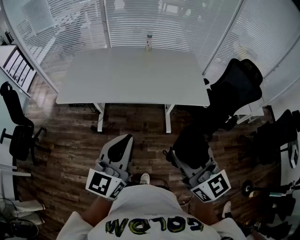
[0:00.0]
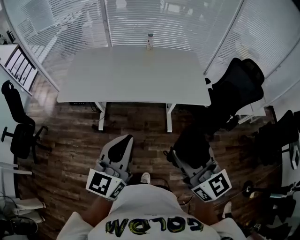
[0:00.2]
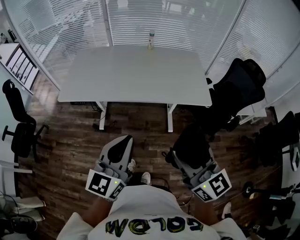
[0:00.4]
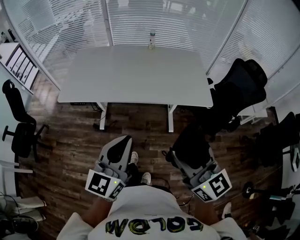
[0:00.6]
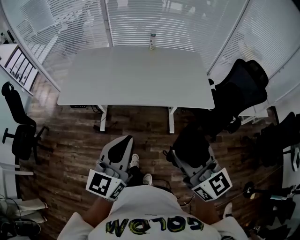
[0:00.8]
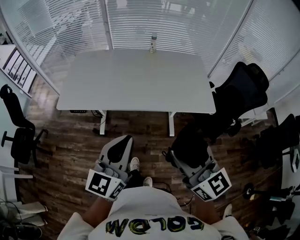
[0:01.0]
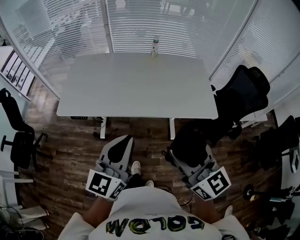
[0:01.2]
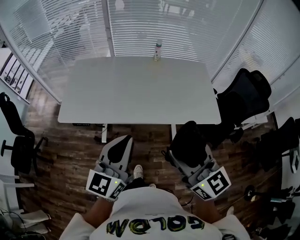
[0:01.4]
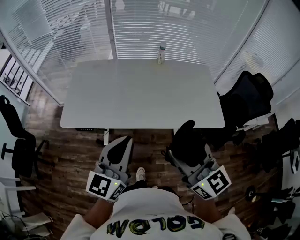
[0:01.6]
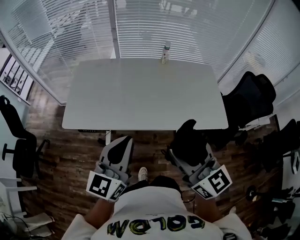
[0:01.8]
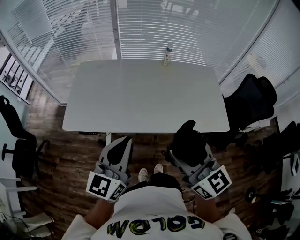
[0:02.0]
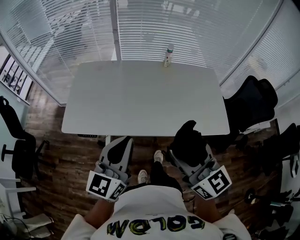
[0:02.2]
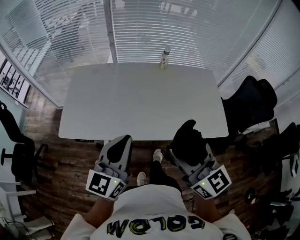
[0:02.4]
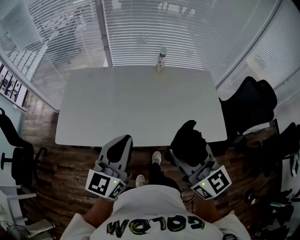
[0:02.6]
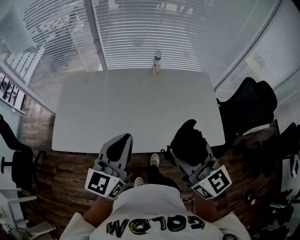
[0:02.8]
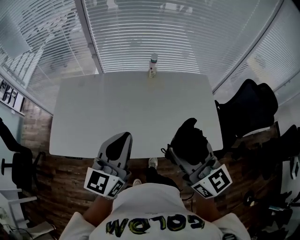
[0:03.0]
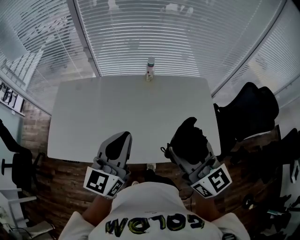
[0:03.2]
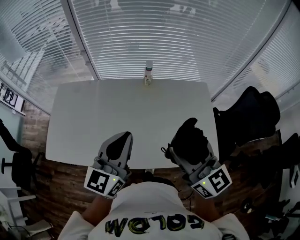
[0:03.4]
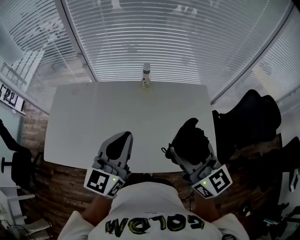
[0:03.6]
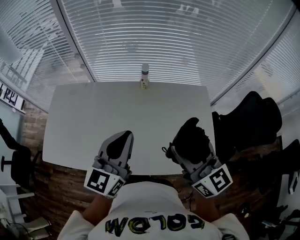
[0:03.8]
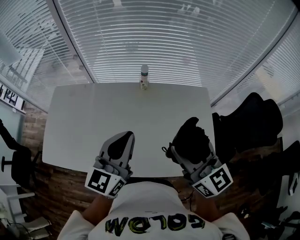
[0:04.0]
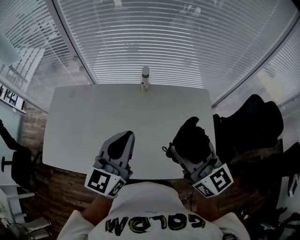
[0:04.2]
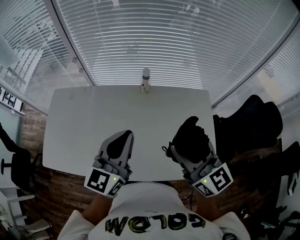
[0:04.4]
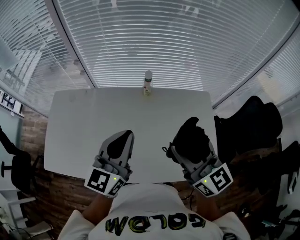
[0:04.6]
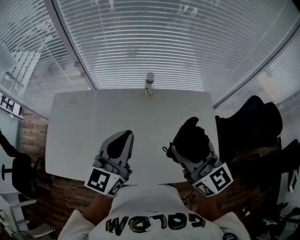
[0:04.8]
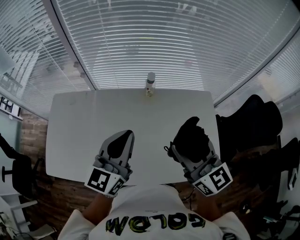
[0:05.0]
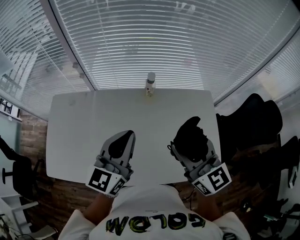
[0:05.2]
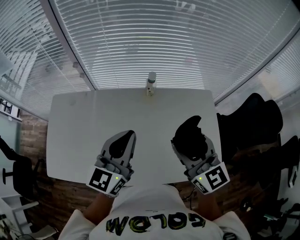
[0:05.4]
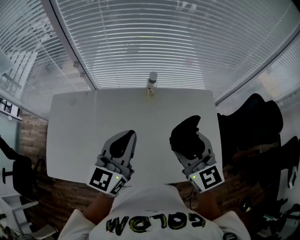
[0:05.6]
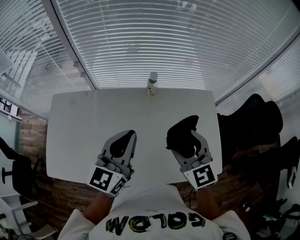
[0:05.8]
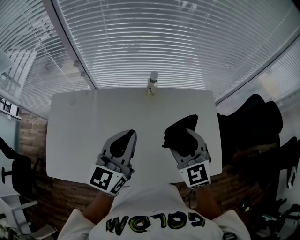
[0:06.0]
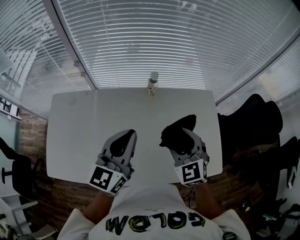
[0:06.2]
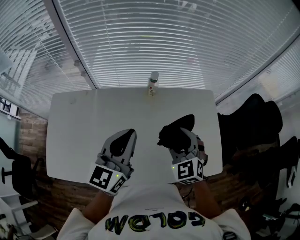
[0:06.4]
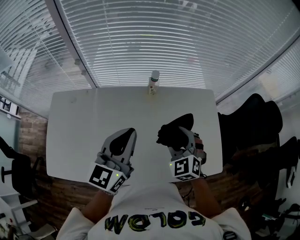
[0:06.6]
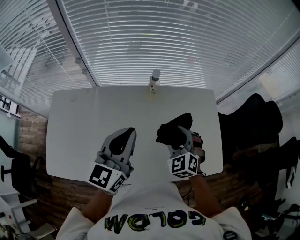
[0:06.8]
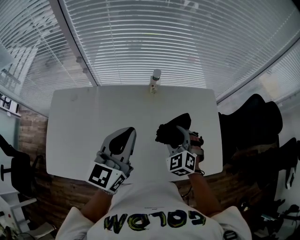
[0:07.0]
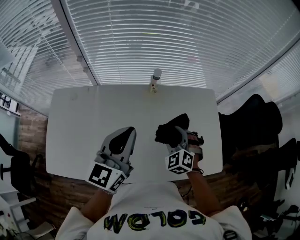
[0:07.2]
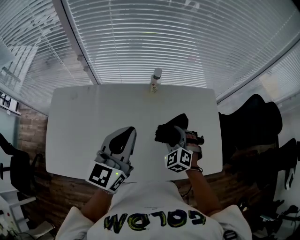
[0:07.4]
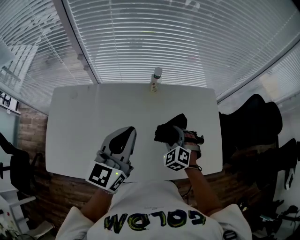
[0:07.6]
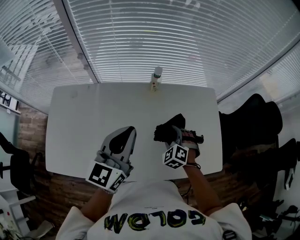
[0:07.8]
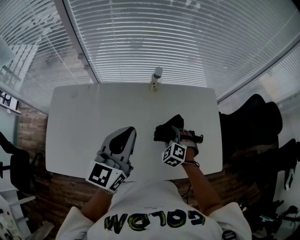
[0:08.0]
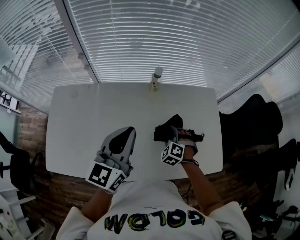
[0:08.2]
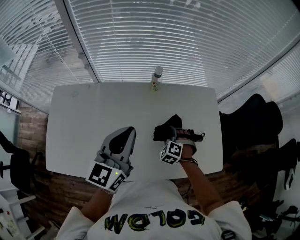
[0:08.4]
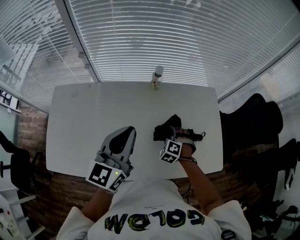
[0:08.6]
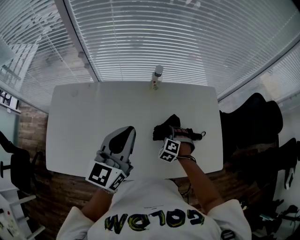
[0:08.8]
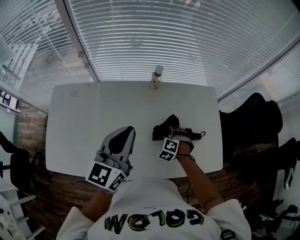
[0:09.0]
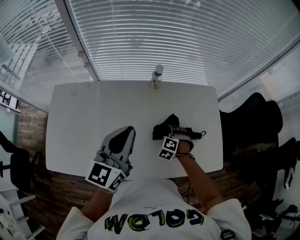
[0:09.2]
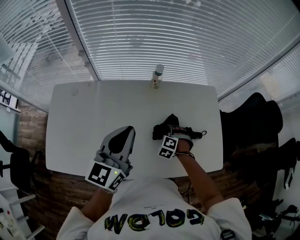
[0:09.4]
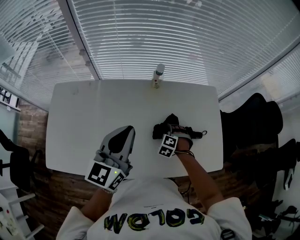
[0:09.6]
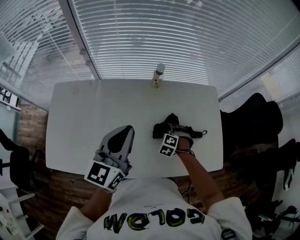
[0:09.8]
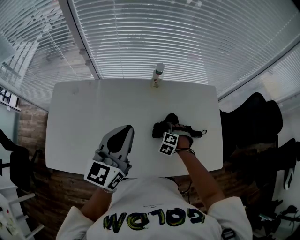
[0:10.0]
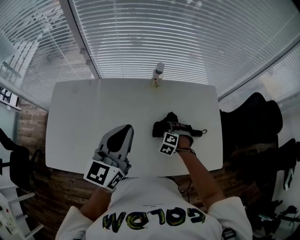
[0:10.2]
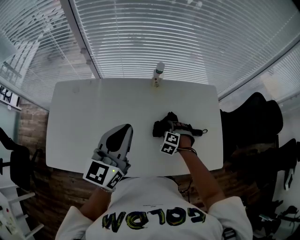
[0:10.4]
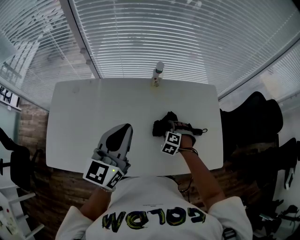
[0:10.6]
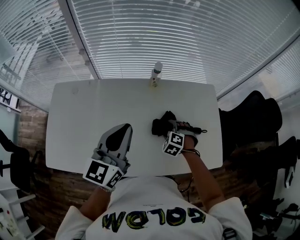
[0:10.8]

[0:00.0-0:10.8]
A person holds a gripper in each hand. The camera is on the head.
0:00.0 to 0:01.6: The two grippers go some 25 cm forward and to the left.
0:01.6 to 0:03.0: The left gripper is displaced forward by about 20 cm. Meanwhile the right gripper moves forward and to the right, roughly 20 cm.
0:03.0 to 0:04.6: Both grippers travel together forward and to the right, some 20 cm.
0:04.6 to 0:06.2: The right gripper heads downward and forward, covering about 15 cm, and swivels some 40 degrees. Meanwhile the left gripper shifts by about 5 cm.
0:06.2 to 0:07.8: The right gripper heads downward, covering some 15 cm, and turns by about 30 degrees.
0:07.8 to 0:09.2: The right gripper shifts roughly 10 cm downward.
0:09.2 to 0:10.8: The grippers make only small movements.

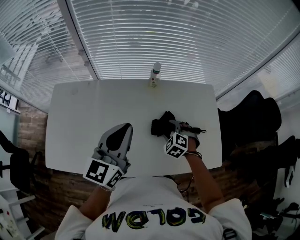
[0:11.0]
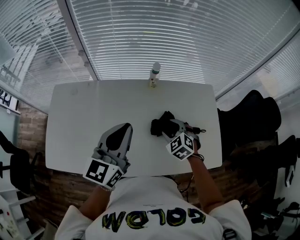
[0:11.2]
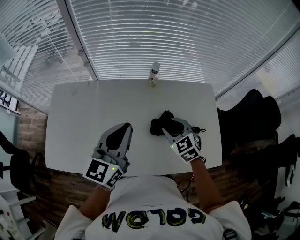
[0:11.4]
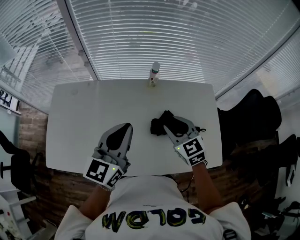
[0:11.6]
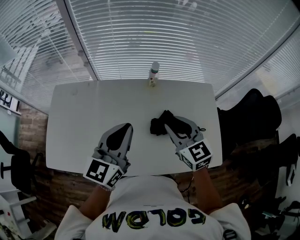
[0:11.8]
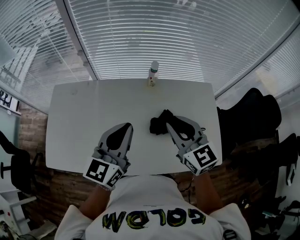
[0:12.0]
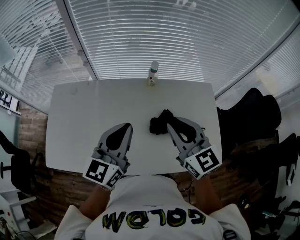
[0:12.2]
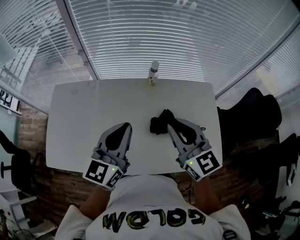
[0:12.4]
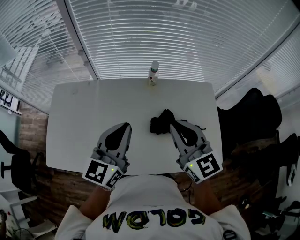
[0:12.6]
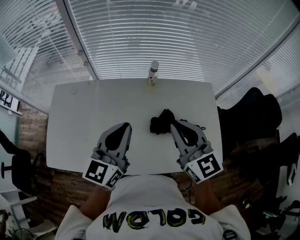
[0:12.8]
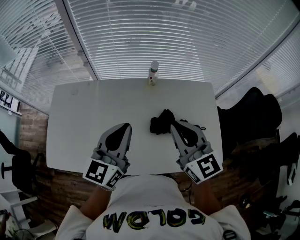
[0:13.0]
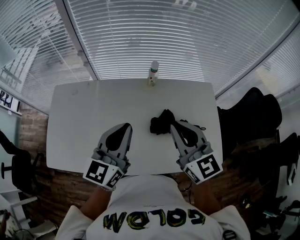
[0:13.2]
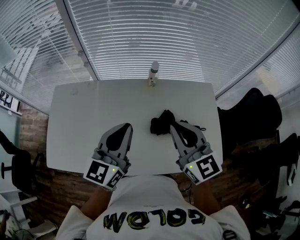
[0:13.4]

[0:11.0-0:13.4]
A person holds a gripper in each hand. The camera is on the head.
0:11.0 to 0:12.2: The right gripper moves upward, about 25 cm, points its fingers some 50 degrees further upward, and closes up.
0:12.2 to 0:13.4: There are only small adjustments of the grippers.

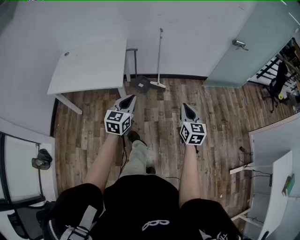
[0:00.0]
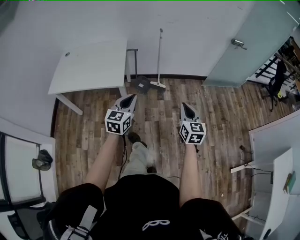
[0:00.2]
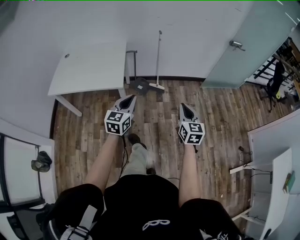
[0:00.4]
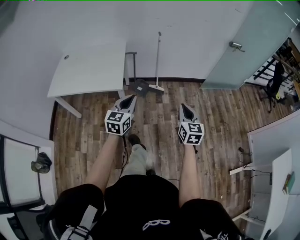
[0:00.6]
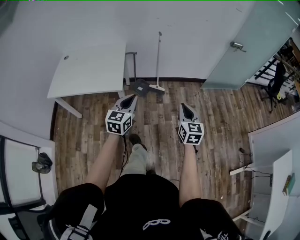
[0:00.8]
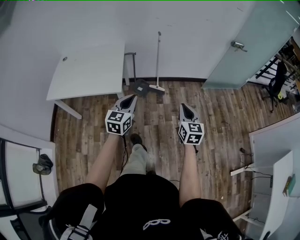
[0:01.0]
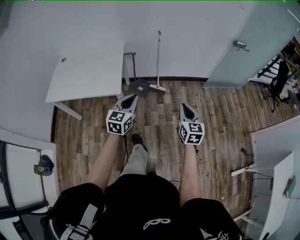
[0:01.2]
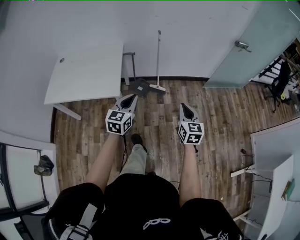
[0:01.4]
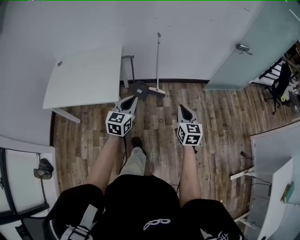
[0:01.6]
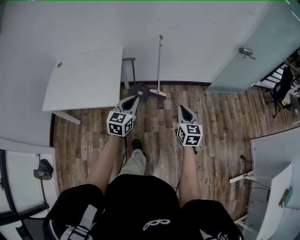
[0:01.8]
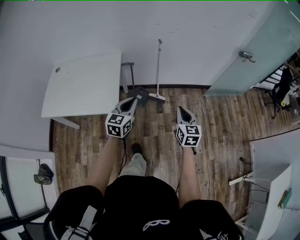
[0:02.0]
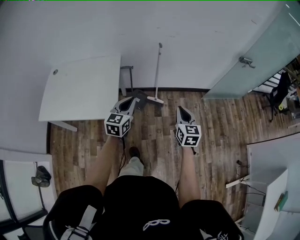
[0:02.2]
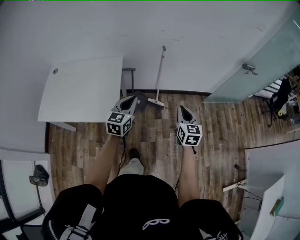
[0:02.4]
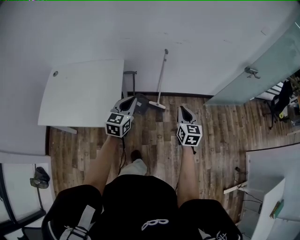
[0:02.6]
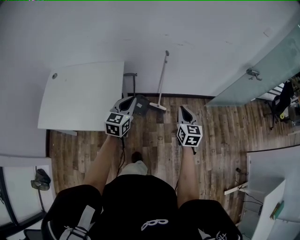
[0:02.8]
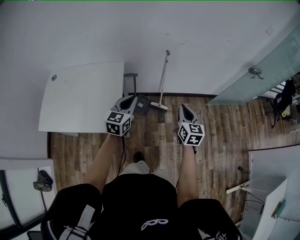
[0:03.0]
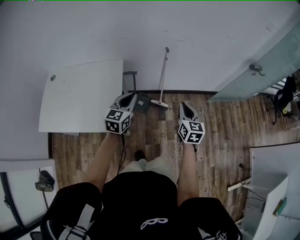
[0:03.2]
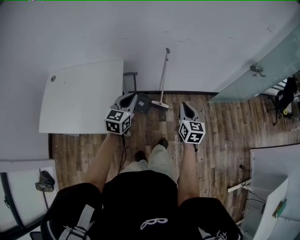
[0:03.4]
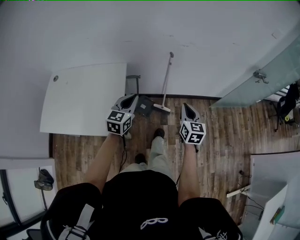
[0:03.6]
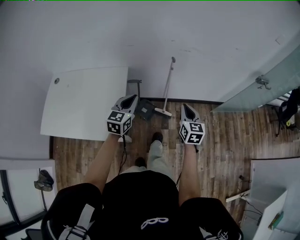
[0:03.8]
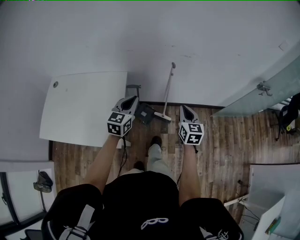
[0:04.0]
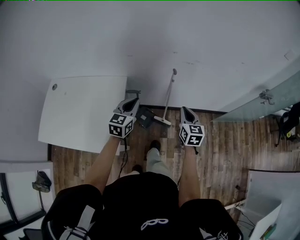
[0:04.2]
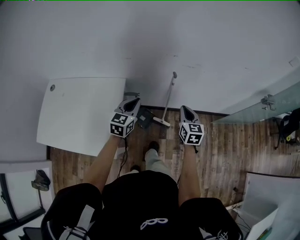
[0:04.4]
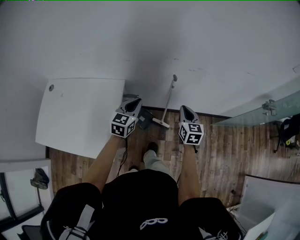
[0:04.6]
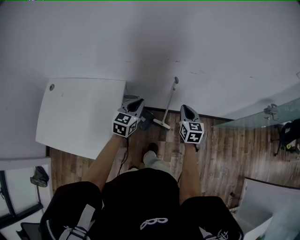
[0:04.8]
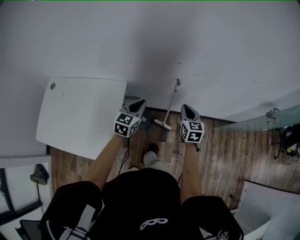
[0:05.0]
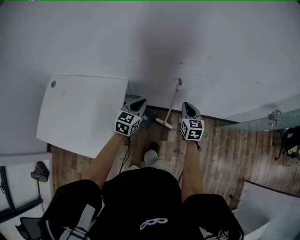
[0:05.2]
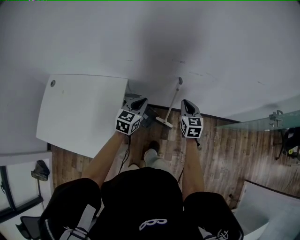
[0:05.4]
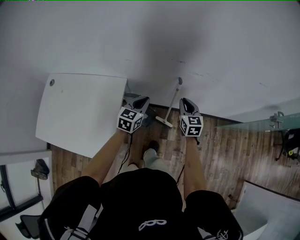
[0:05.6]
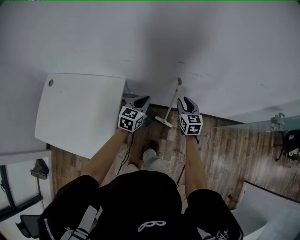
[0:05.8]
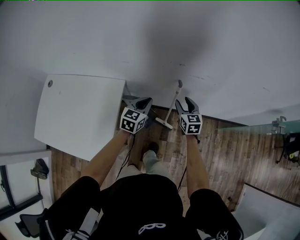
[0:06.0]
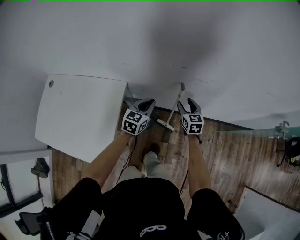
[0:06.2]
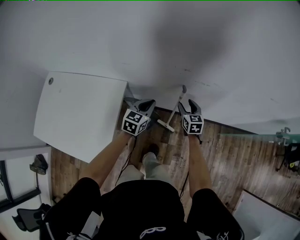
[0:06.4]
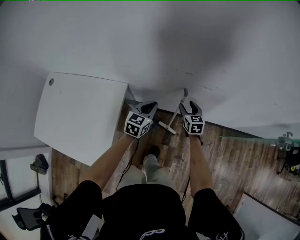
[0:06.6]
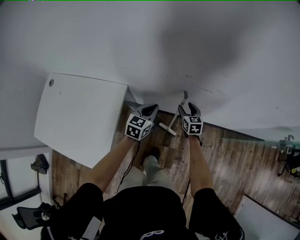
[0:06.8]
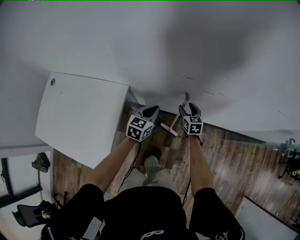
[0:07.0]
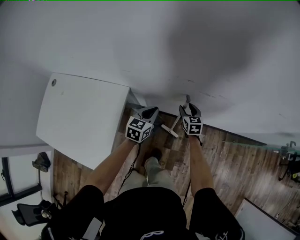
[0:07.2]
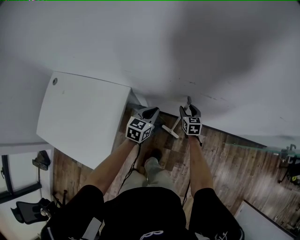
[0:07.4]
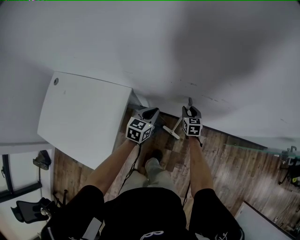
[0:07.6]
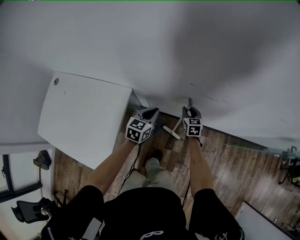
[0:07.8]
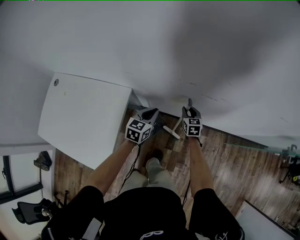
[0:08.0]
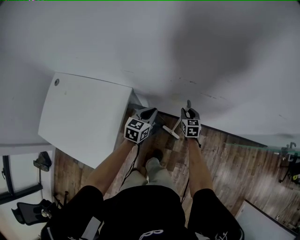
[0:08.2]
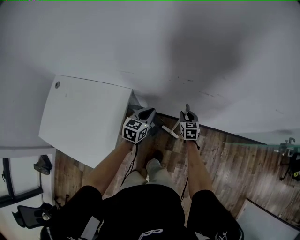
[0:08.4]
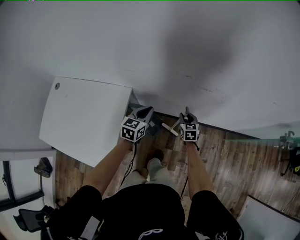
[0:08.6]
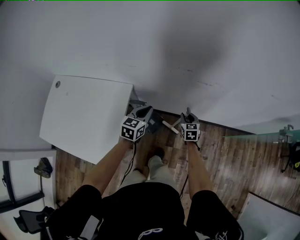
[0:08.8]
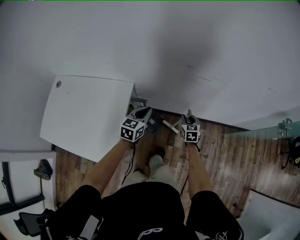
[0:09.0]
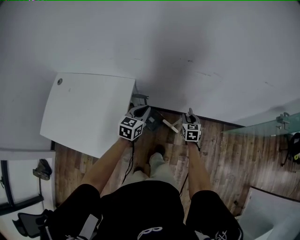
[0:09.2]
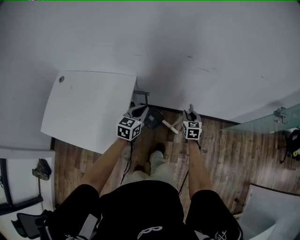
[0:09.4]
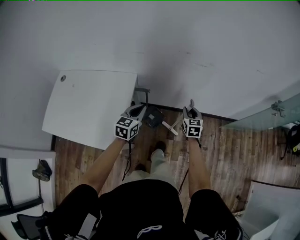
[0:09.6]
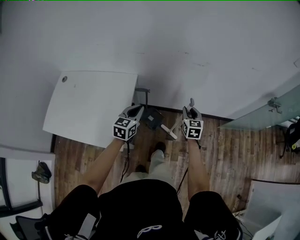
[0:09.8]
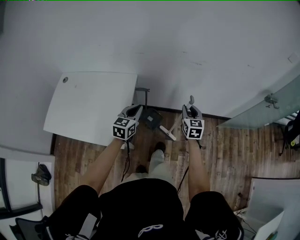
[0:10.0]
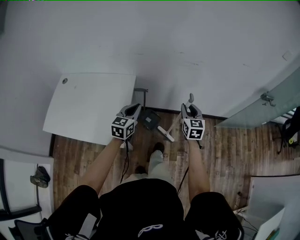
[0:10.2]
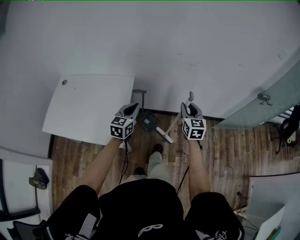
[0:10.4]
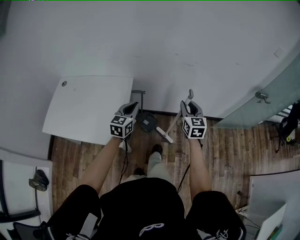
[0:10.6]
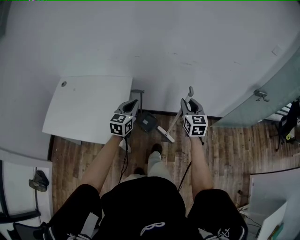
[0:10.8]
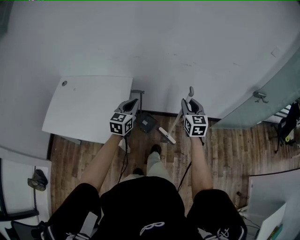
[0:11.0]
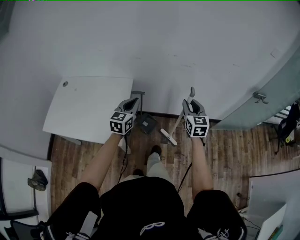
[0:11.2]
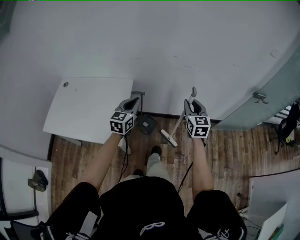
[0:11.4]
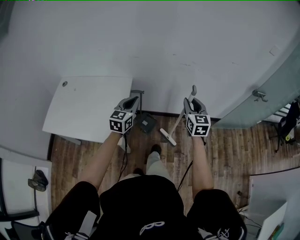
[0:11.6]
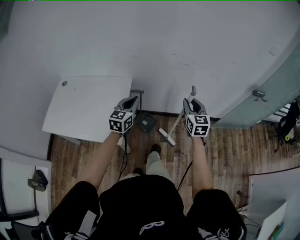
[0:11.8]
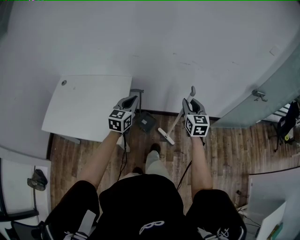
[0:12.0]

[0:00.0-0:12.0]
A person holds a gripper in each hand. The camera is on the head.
0:00.0 to 0:01.6: Both grippers travel together forward, approximately 15 cm.
0:01.6 to 0:03.0: The right gripper goes about 25 cm forward, while the left gripper moves forward and to the left, roughly 25 cm.
0:03.0 to 0:04.4: The grippers both shift forward by about 25 cm.
0:04.4 to 0:06.0: The right gripper travels forward and downward by some 20 cm, and opens up. Meanwhile the left gripper moves forward, downward and to the right, approximately 15 cm.
0:06.0 to 0:07.6: The left gripper is displaced downward and forward by roughly 10 cm, while the right gripper moves downward and forward, about 15 cm.
0:07.6 to 0:09.0: The left gripper heads backward and upward, covering some 10 cm. The right gripper goes approximately 15 cm backward.
0:09.0 to 0:10.4: The right gripper heads upward and backward, covering approximately 35 cm, and changes its angle by some 20 degrees, while the left gripper heads backward and upward, covering about 25 cm.
0:10.4 to 0:12.0: The right gripper moves approximately 5 cm.
